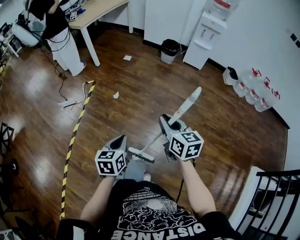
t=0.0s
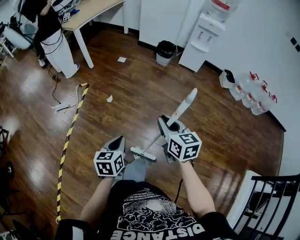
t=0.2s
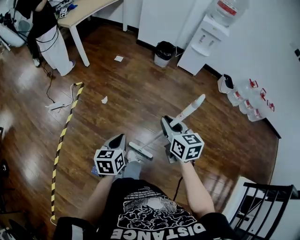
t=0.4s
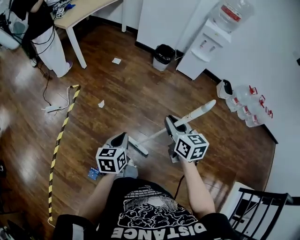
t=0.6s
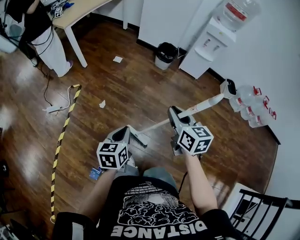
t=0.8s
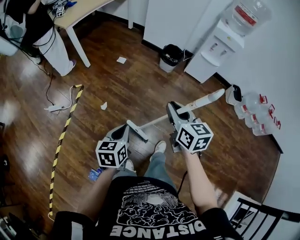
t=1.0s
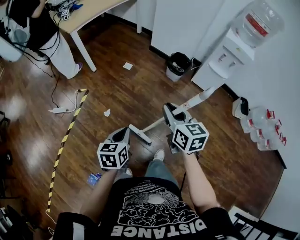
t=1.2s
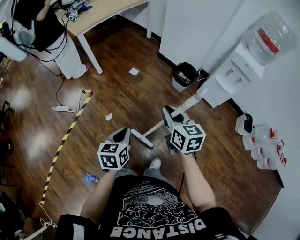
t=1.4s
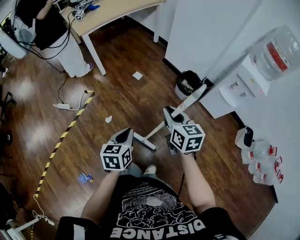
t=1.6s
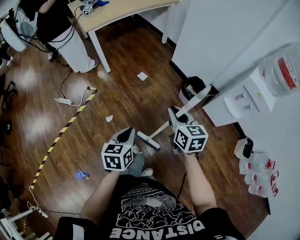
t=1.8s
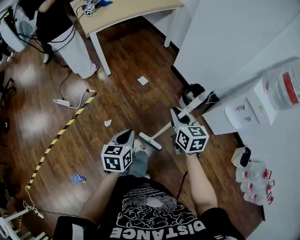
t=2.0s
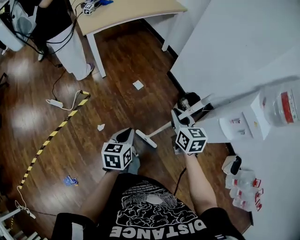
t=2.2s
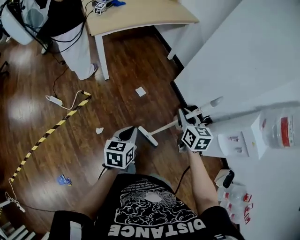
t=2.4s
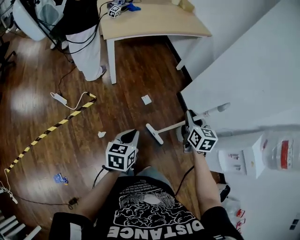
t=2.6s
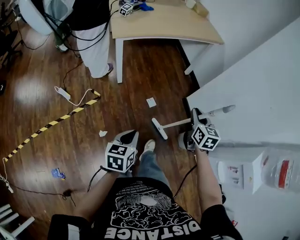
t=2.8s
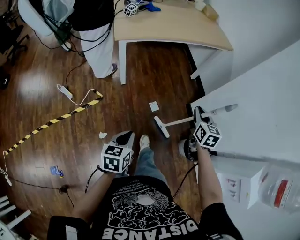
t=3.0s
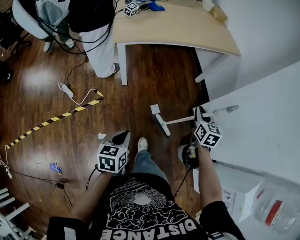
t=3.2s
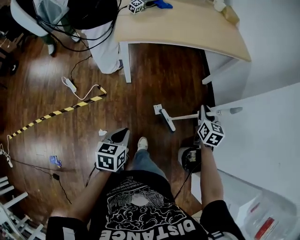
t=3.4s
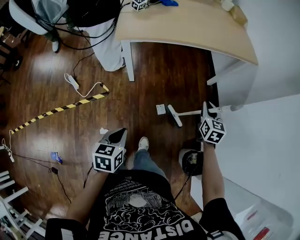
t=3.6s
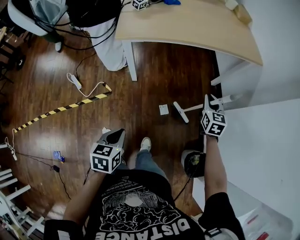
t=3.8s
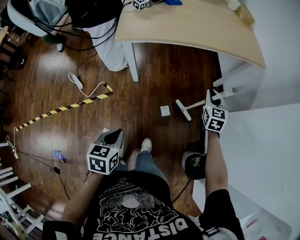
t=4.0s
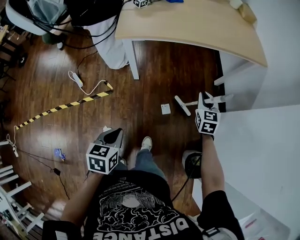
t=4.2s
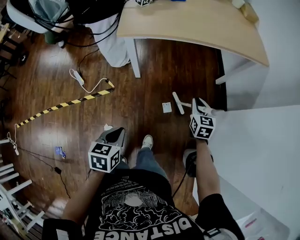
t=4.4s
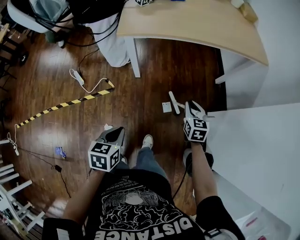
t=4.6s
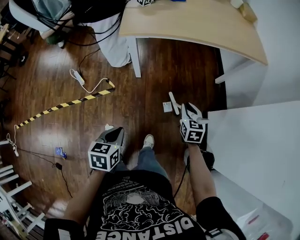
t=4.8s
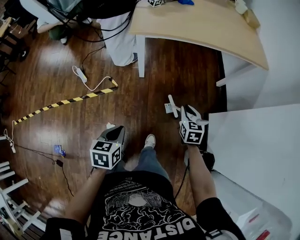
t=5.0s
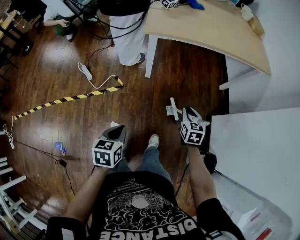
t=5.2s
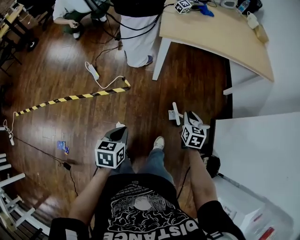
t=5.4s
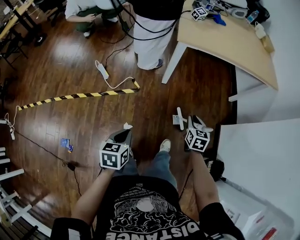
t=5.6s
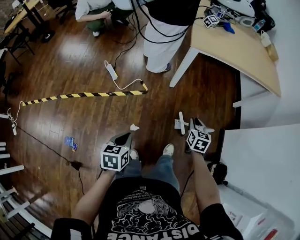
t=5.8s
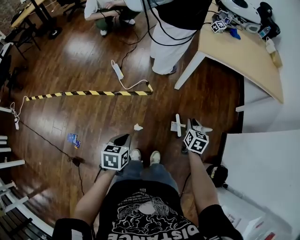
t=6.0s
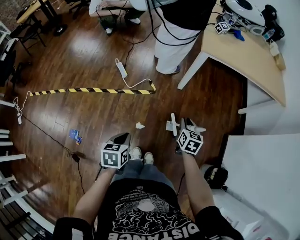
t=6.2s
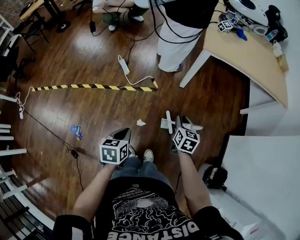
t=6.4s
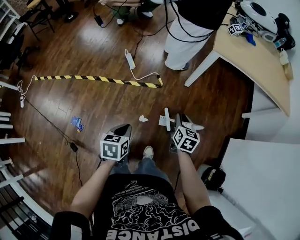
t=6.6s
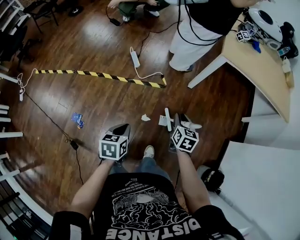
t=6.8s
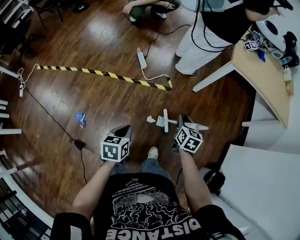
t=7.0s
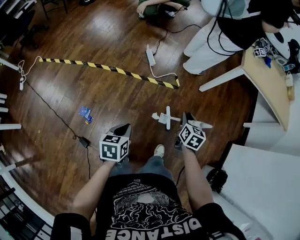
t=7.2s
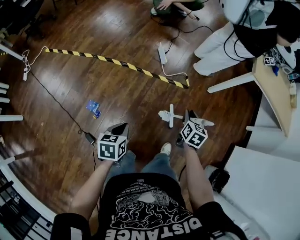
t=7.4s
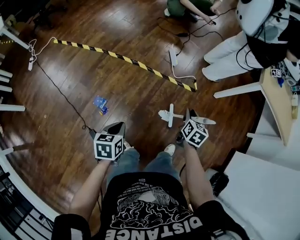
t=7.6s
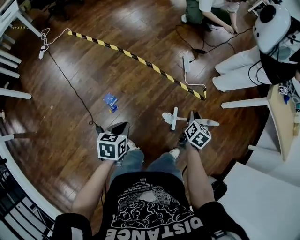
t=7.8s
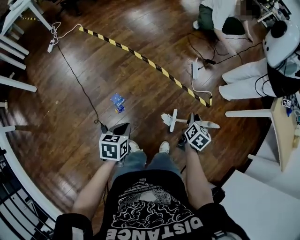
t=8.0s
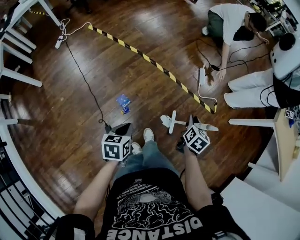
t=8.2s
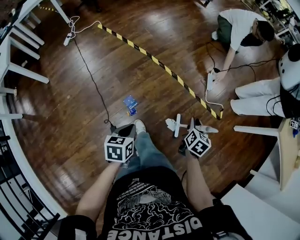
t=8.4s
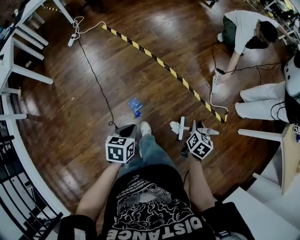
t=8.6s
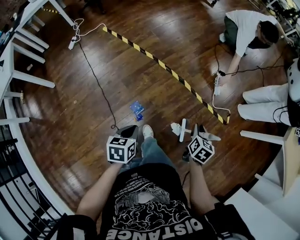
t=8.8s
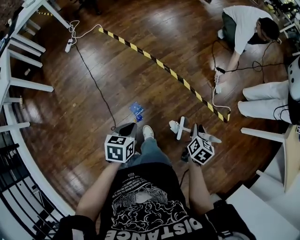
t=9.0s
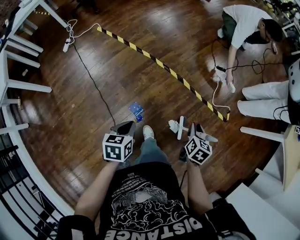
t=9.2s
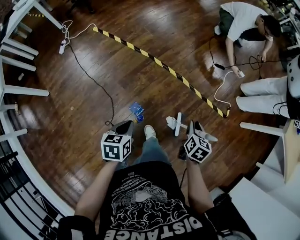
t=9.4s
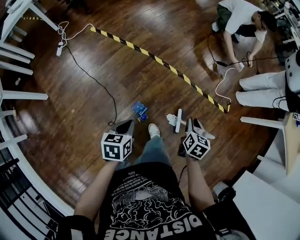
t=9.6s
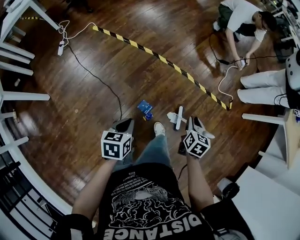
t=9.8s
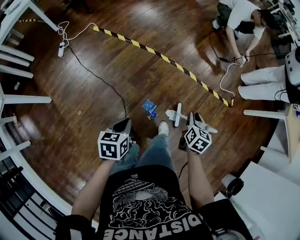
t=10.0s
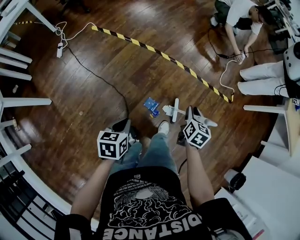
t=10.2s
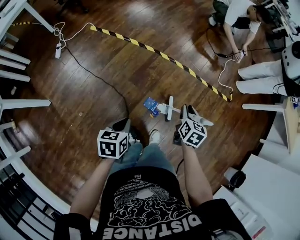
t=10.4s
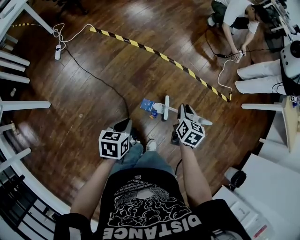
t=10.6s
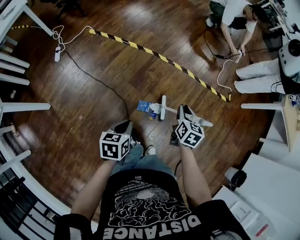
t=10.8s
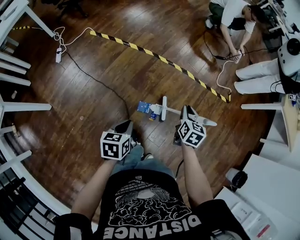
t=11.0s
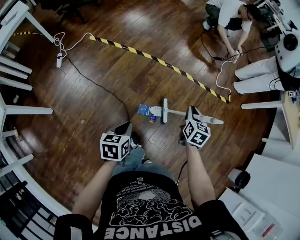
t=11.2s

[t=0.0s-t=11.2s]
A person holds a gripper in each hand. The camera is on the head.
t=0.0s to t=1.6s: The two grippers travel together, forward, about 60 cm.
t=1.6s to t=3.2s: The pair of grippers is taken forward, some 50 cm. The right gripper swivels some 20 degrees, while the left gripper changes its angle by roughly 30 degrees.
t=3.2s to t=4.8s: The right gripper moves downward, to the left and forward, roughly 15 cm. The left gripper moves roughly 5 cm.
t=4.8s to t=6.4s: Both grippers move to the left and backward, some 35 cm.
t=6.4s to t=8.0s: The two grippers travel together, to the left, about 50 cm. The left gripper swivels roughly 30 degrees.
t=8.0s to t=9.6s: Both grippers move to the left, approximately 25 cm.
t=9.6s to t=11.2s: The grippers both shift to the left and backward by approximately 15 cm.

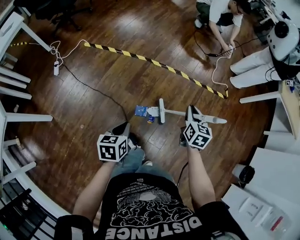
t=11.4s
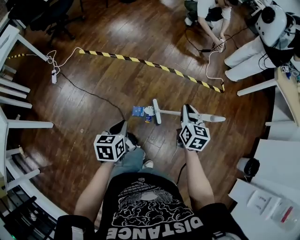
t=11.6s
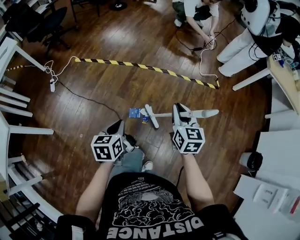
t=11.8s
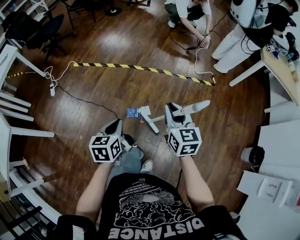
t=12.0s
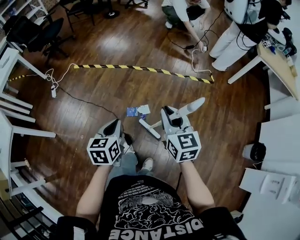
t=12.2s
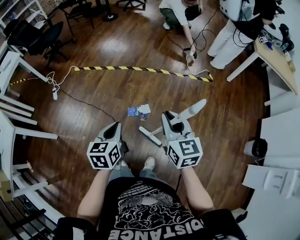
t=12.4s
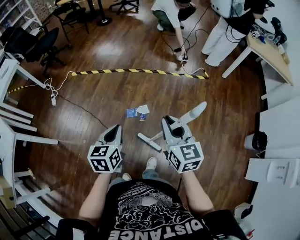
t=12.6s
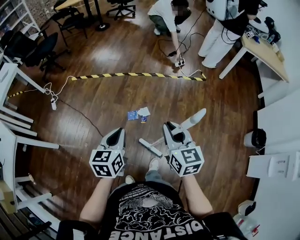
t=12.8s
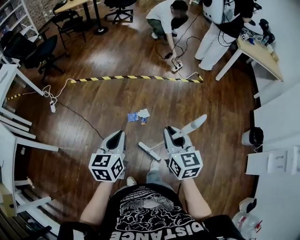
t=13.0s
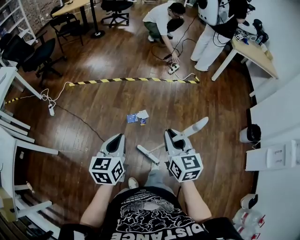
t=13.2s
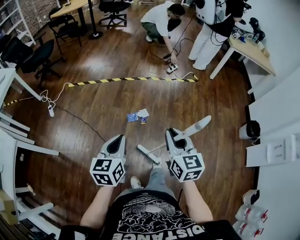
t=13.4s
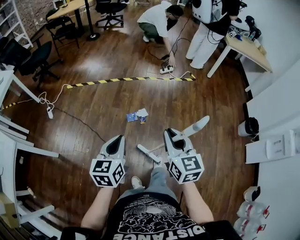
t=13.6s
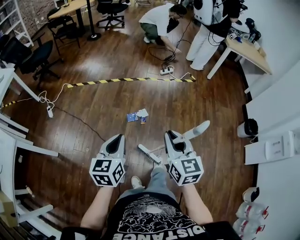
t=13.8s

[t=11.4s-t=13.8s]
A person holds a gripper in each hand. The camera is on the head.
t=11.4s to t=12.6s: The right gripper travels backward and upward by some 35 cm, and changes its angle by some 20 degrees; the left gripper moves backward, upward and to the right, approximately 25 cm, and changes its angle by roughly 20 degrees.
t=12.6s to t=13.8s: The right gripper heads backward and to the left, covering some 20 cm; the left gripper is displaced backward, to the left and upward by approximately 20 cm.

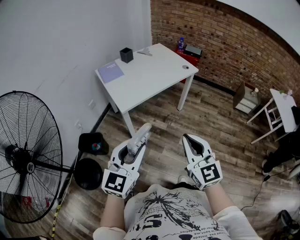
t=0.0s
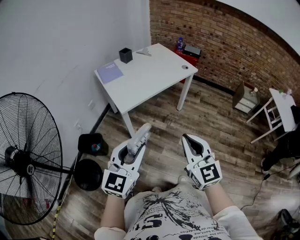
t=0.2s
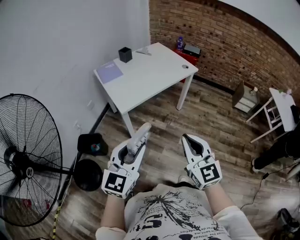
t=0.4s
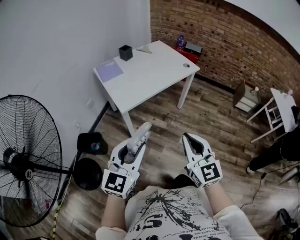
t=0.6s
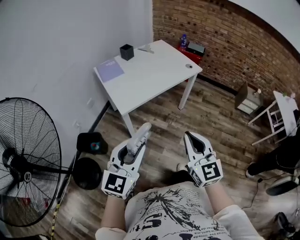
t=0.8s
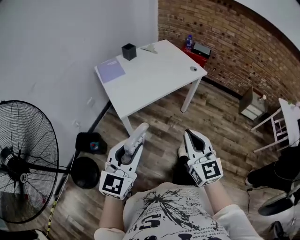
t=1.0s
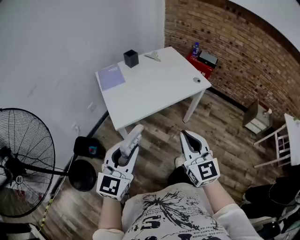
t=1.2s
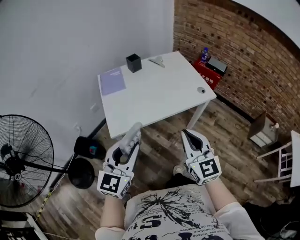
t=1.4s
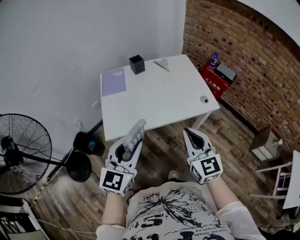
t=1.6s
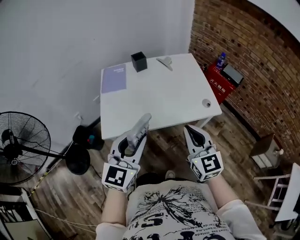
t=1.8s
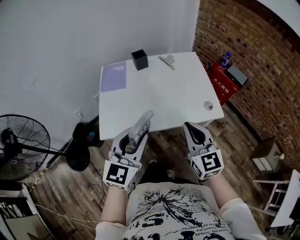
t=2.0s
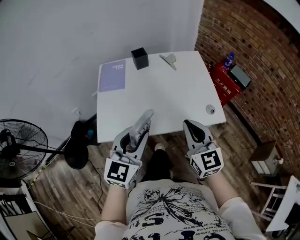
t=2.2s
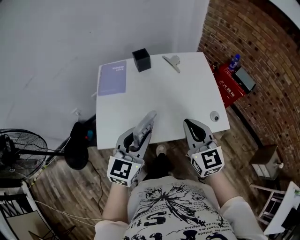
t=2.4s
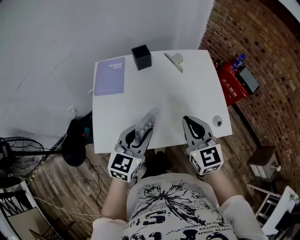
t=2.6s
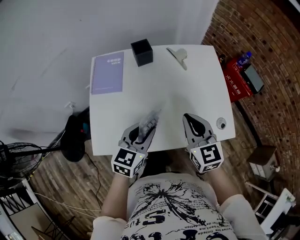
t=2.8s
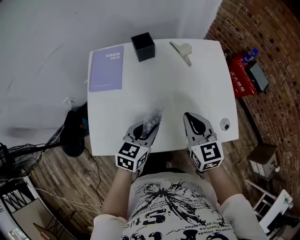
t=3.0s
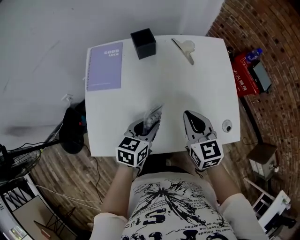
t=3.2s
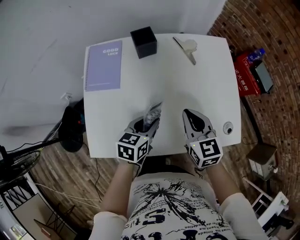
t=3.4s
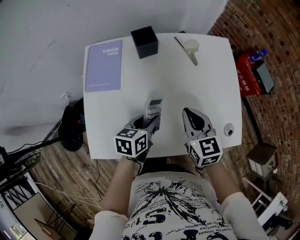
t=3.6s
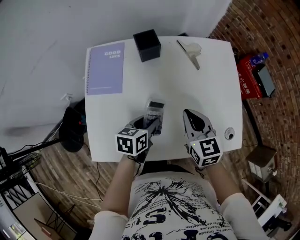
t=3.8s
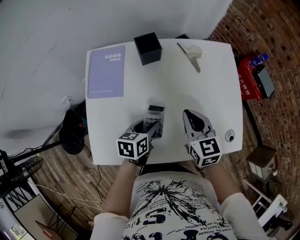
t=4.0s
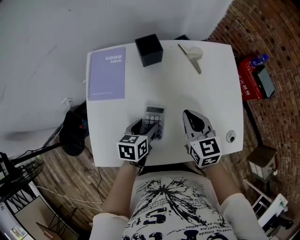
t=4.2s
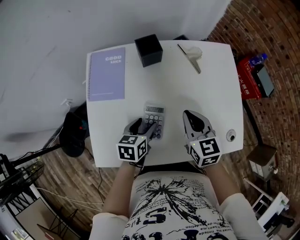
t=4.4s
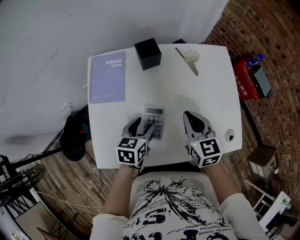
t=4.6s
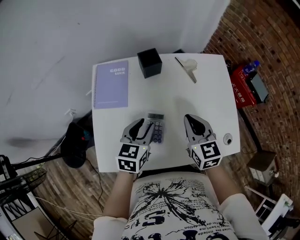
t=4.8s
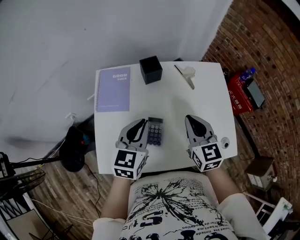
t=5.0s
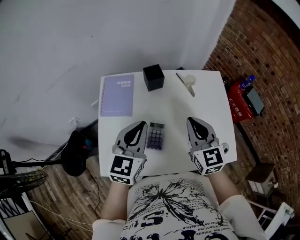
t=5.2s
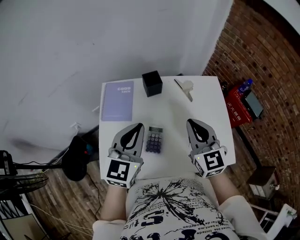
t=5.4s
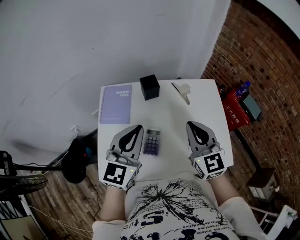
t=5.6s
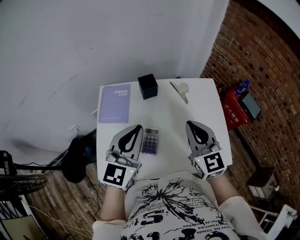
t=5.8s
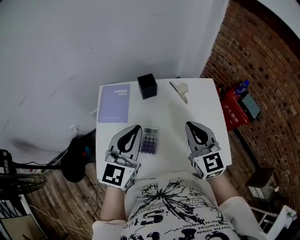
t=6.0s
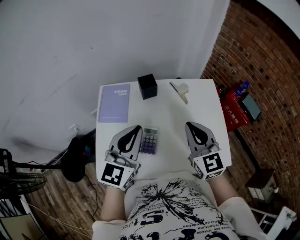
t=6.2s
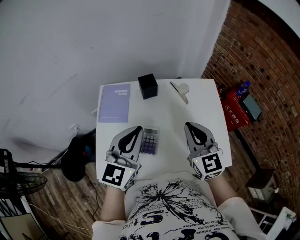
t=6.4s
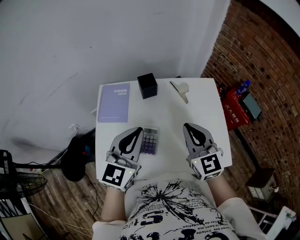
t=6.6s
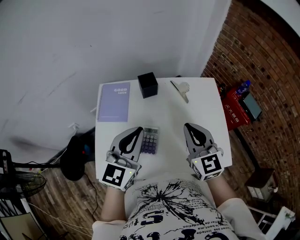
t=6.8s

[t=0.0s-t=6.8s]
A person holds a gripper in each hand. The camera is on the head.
t=0.0s to t=1.4s: The two grippers go roughly 30 cm forward.
t=1.4s to t=2.8s: Both grippers are carried forward, some 40 cm. The left gripper changes its angle by roughly 30 degrees; the right gripper swivels some 20 degrees.
t=2.8s to t=4.0s: The right gripper heads forward and downward, covering roughly 15 cm; the left gripper travels downward and forward by approximately 15 cm, and changes its angle by approximately 30 degrees.
t=4.0s to t=5.4s: The left gripper moves upward, approximately 25 cm, angles its fingers upward, by some 30 degrees, and closes its fingers. The right gripper shifts some 15 cm upward, and rotates roughly 20 degrees.
t=5.4s to t=6.8s: The grippers move only a little.

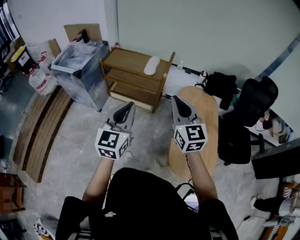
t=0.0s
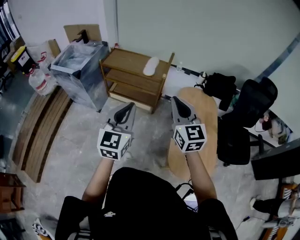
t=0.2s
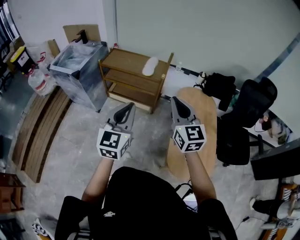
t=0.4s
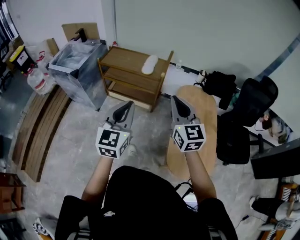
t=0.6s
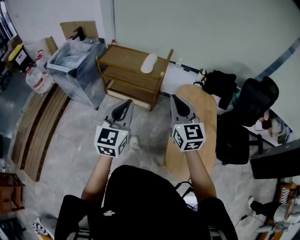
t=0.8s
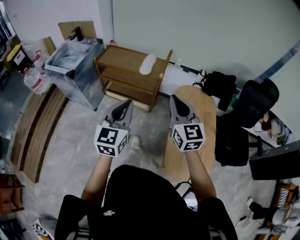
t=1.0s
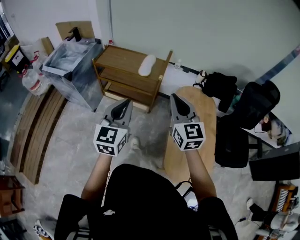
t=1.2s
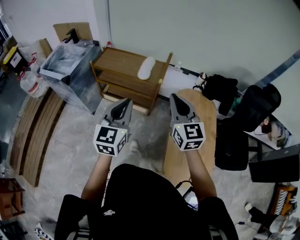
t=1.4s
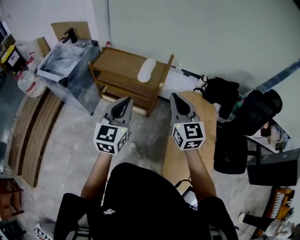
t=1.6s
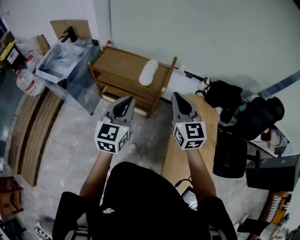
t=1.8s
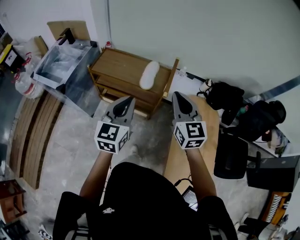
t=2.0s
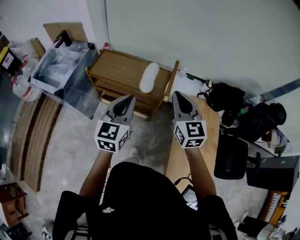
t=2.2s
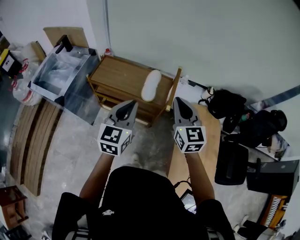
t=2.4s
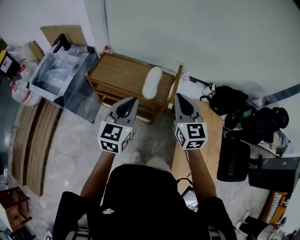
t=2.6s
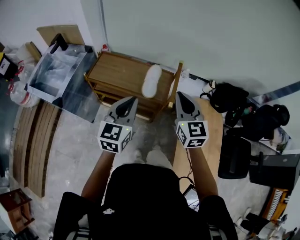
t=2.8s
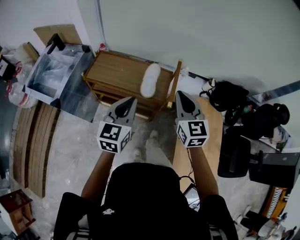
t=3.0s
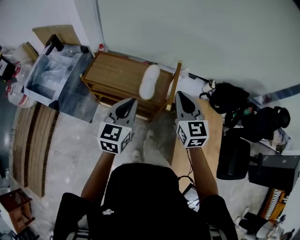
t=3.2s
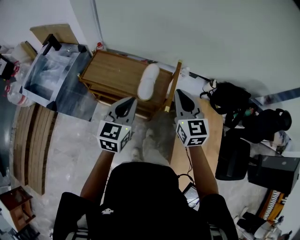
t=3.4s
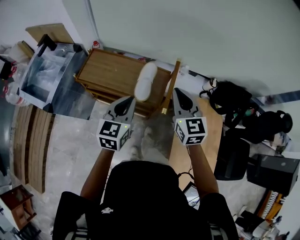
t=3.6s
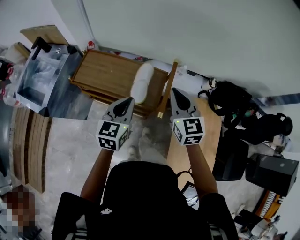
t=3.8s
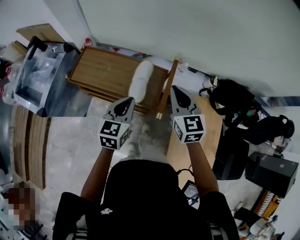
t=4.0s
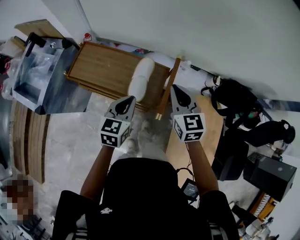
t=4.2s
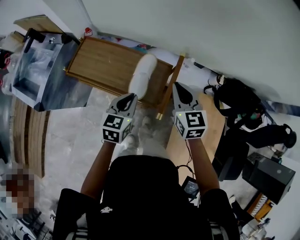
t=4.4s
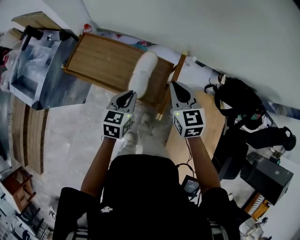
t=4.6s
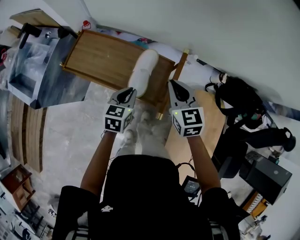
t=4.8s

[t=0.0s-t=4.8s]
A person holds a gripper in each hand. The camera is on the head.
t=0.0s to t=1.6s: The two grippers go some 20 cm forward.
t=1.6s to t=3.2s: Both grippers travel together forward, approximately 25 cm.
t=3.2s to t=4.8s: The right gripper heads forward and downward, covering about 25 cm. Meanwhile the left gripper heads downward and forward, covering about 30 cm, and rotates some 30 degrees.
